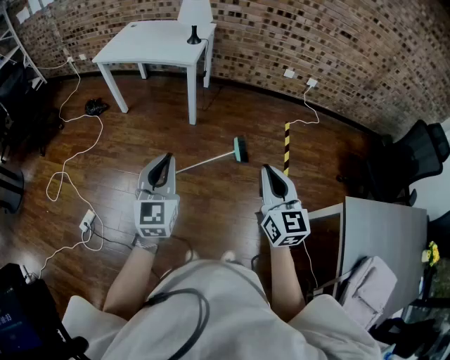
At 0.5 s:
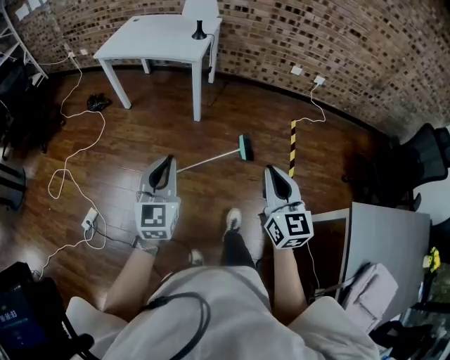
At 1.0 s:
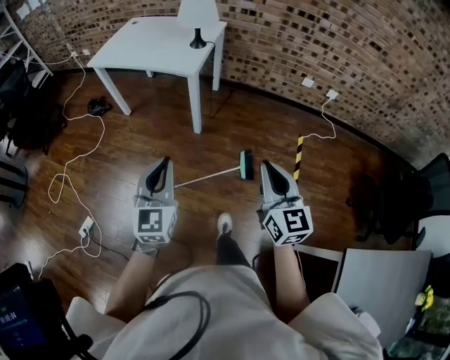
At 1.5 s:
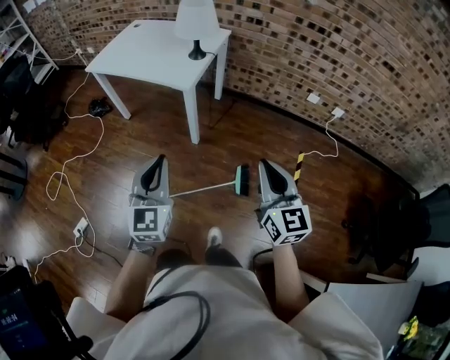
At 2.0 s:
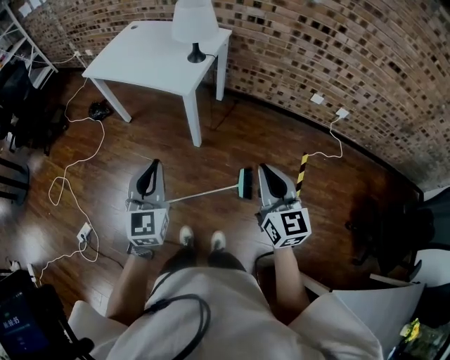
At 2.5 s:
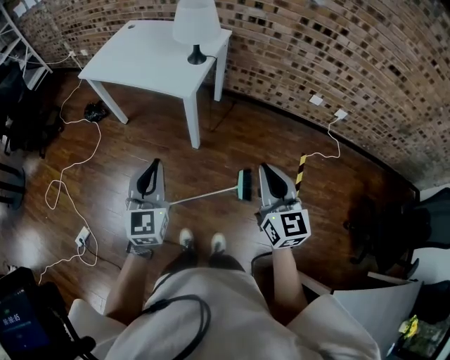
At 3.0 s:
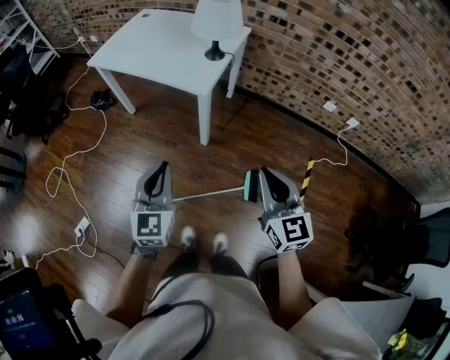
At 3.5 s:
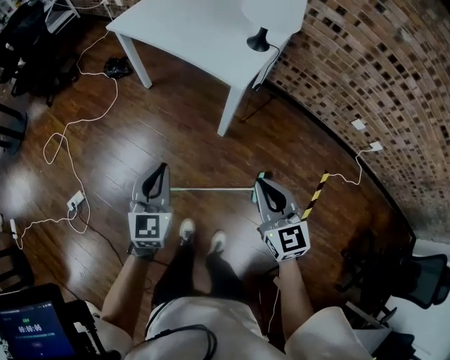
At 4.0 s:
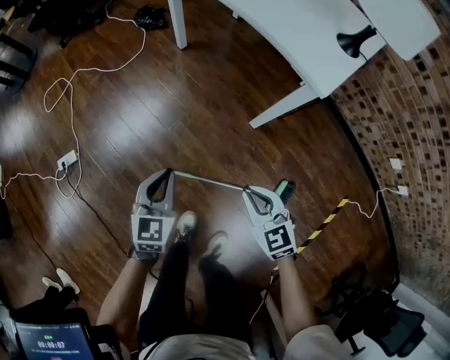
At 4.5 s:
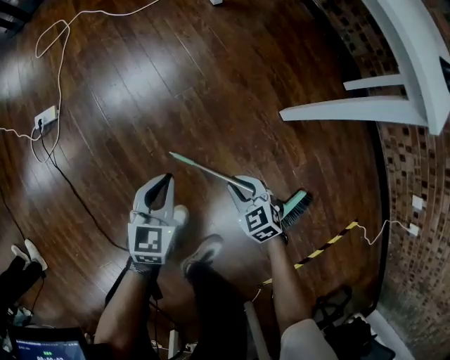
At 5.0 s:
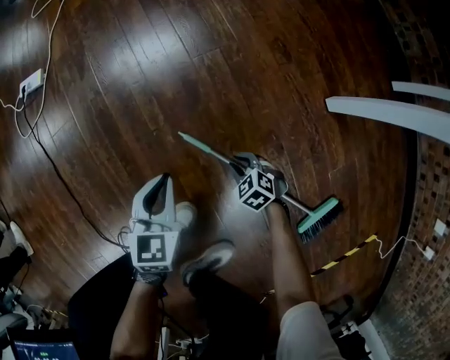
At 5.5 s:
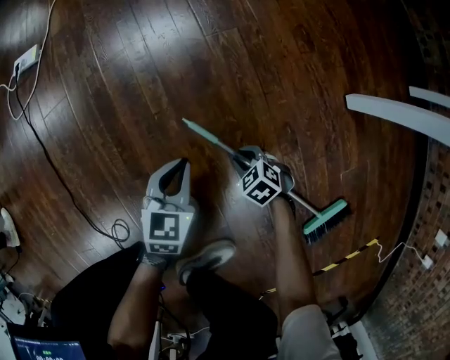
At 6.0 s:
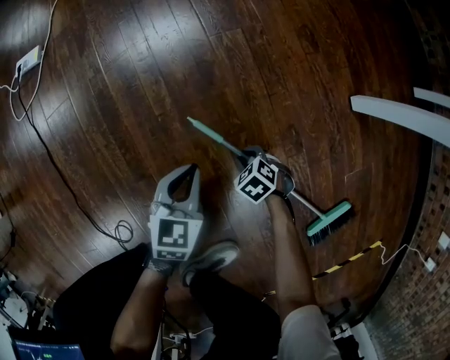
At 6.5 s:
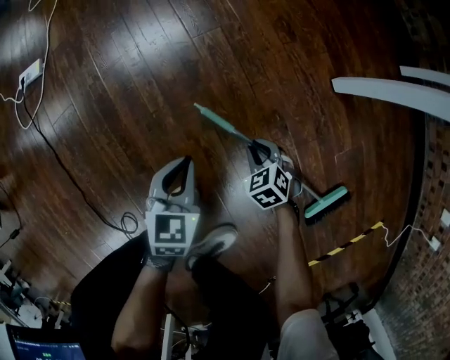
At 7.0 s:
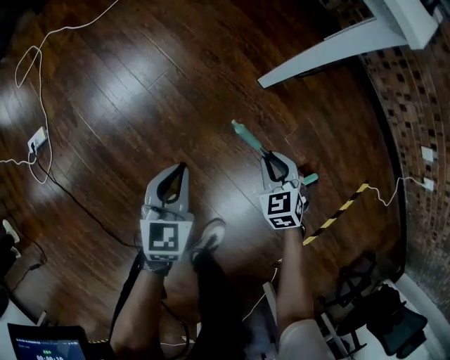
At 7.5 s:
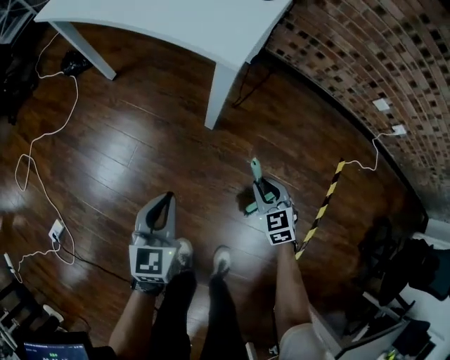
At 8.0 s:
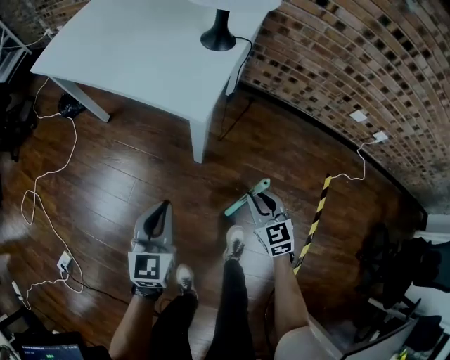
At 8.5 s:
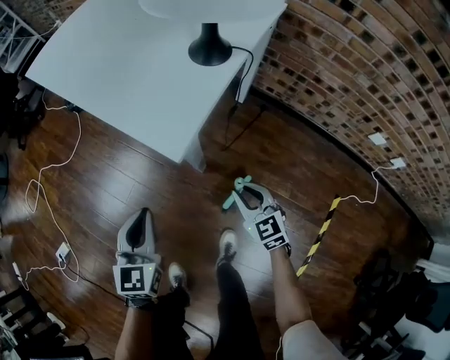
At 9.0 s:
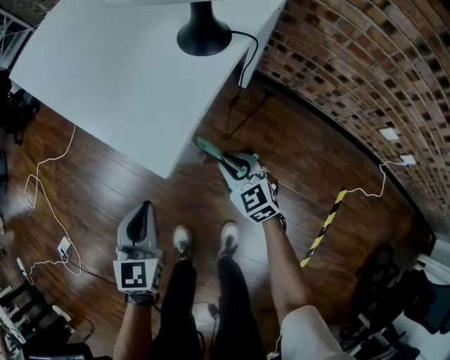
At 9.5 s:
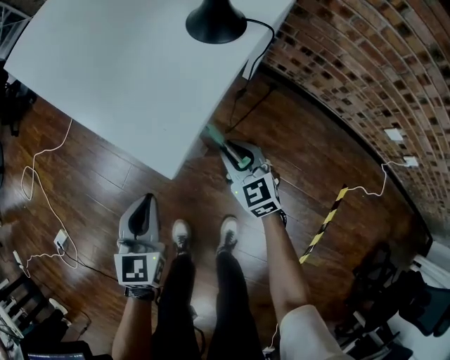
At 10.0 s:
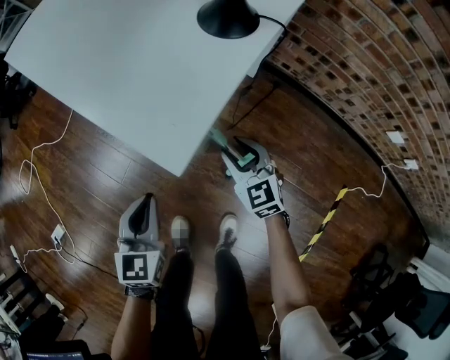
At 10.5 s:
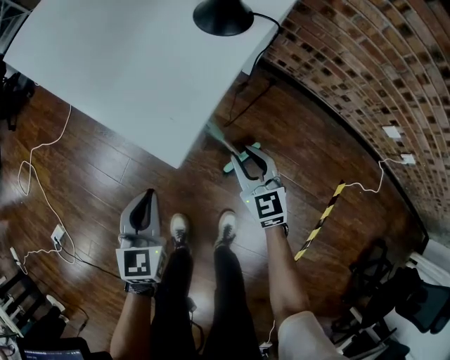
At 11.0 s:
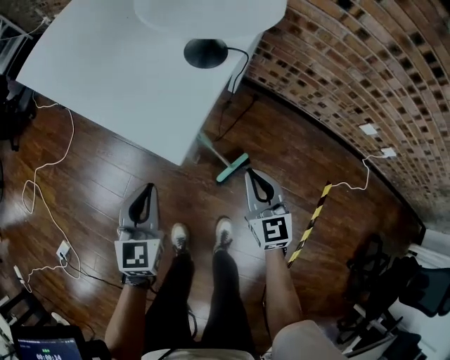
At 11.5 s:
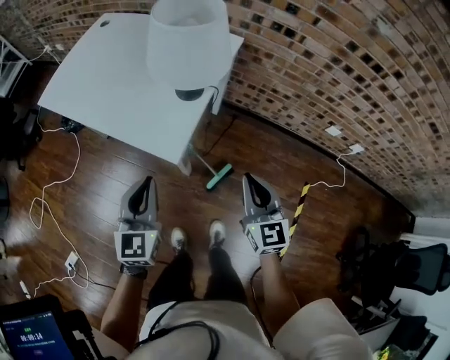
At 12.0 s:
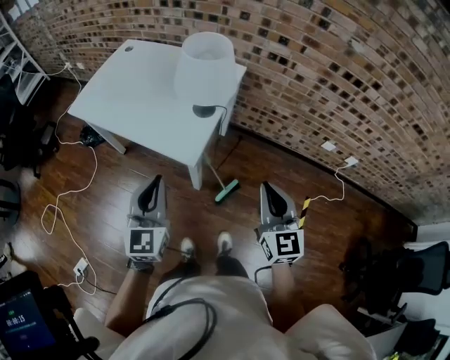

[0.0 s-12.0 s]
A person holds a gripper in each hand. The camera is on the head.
0.0 to 2.0 s: Both grippers travel together forward, some 35 cm.
2.0 to 4.0 s: Both grippers move downward, some 35 cm. The right gripper turns by roughly 50 degrees, while the left gripper rotates roughly 30 degrees.
4.0 to 6.0 s: Both grippers move downward, some 60 cm. The right gripper angles its fingers downward, by approximately 40 degrees. The left gripper turns by approximately 30 degrees.
6.0 to 8.0 s: Both grippers travel together upward, roughly 60 cm. The left gripper changes its angle by some 40 degrees, while the right gripper points its fingers approximately 40 degrees further upward.
8.0 to 10.0 s: The right gripper heads forward, covering approximately 20 cm, and opens, while the left gripper shifts about 15 cm forward and downward.
10.0 to 12.0 s: The grippers both shift upward by approximately 40 cm. The left gripper changes its angle by approximately 30 degrees. Meanwhile the right gripper swivels approximately 40 degrees, and closes.

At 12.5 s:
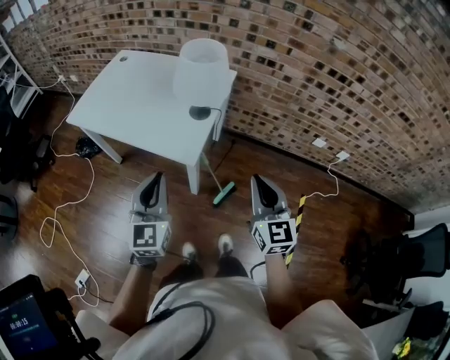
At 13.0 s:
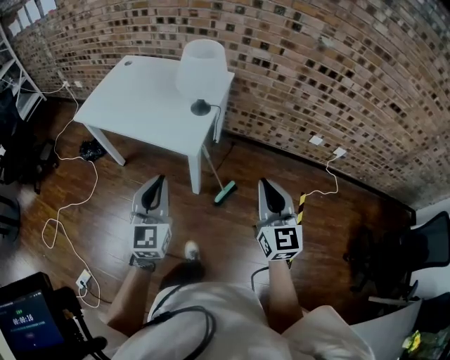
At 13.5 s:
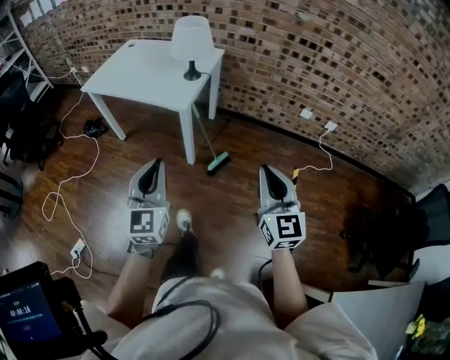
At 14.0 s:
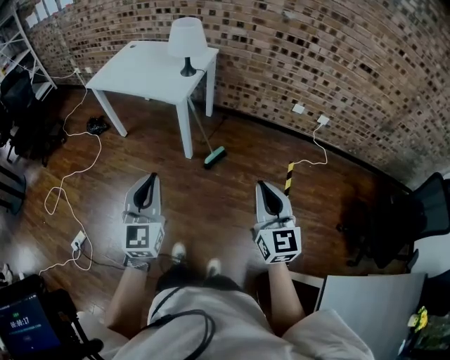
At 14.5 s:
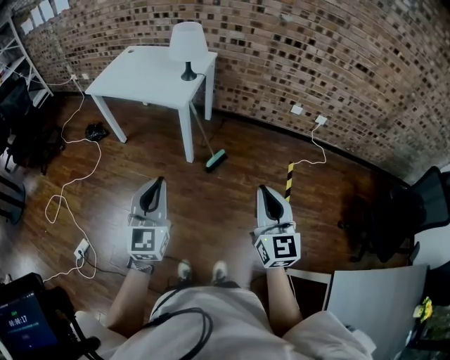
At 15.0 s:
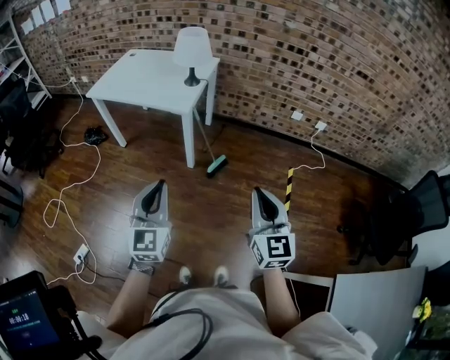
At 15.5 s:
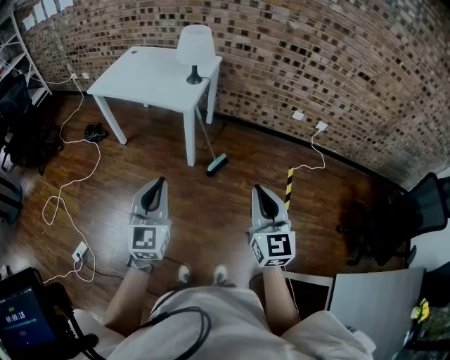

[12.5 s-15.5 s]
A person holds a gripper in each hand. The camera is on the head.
12.5 to 14.0 s: The two grippers travel together, backward, approximately 40 cm.
14.0 to 15.5 s: Both grippers travel together to the left, some 5 cm.

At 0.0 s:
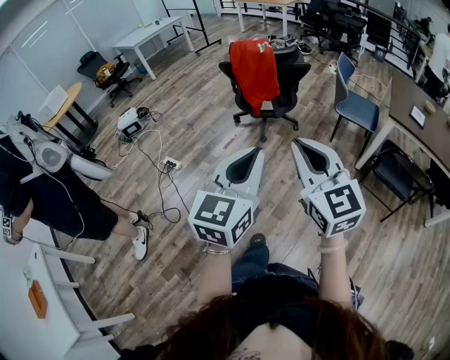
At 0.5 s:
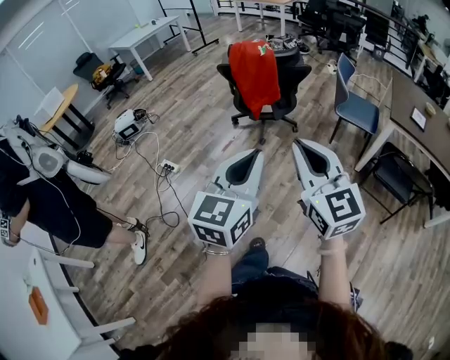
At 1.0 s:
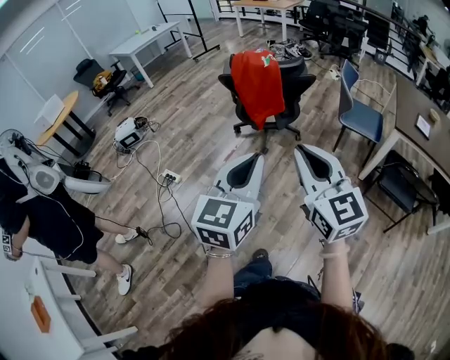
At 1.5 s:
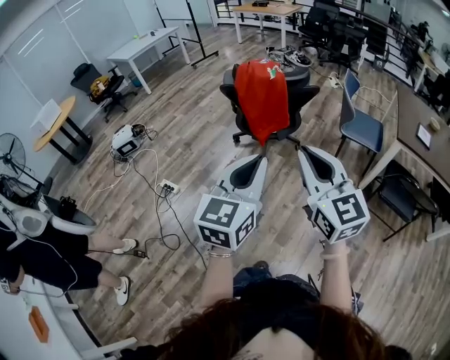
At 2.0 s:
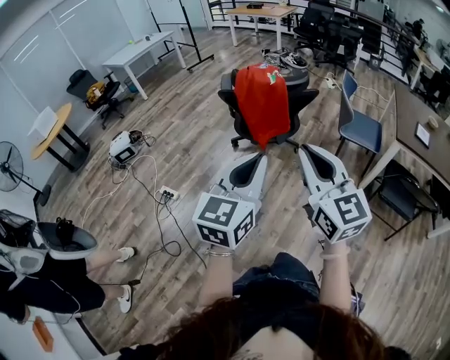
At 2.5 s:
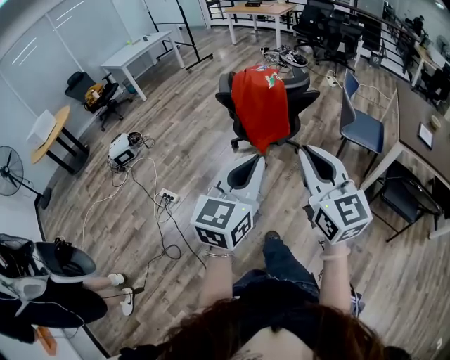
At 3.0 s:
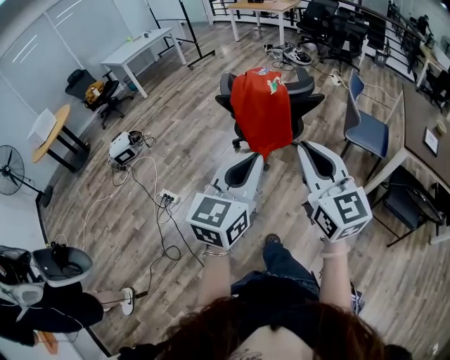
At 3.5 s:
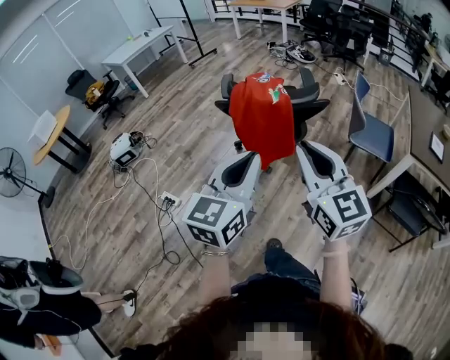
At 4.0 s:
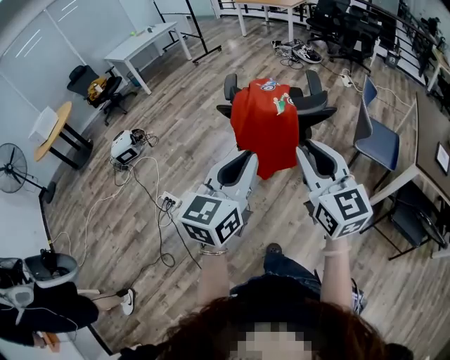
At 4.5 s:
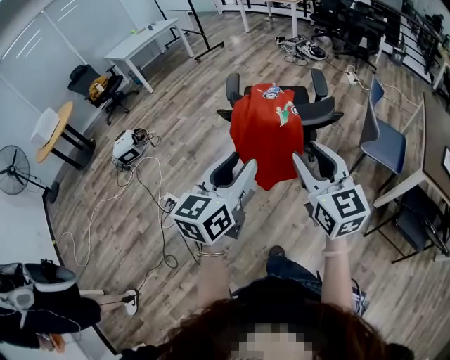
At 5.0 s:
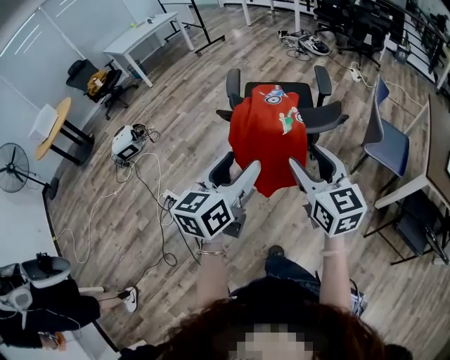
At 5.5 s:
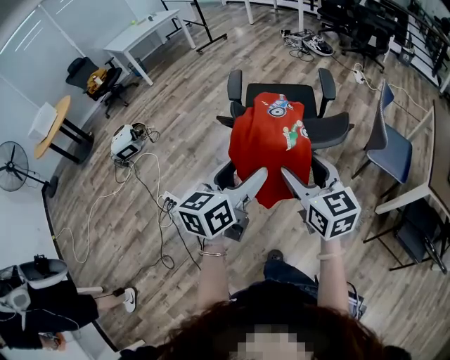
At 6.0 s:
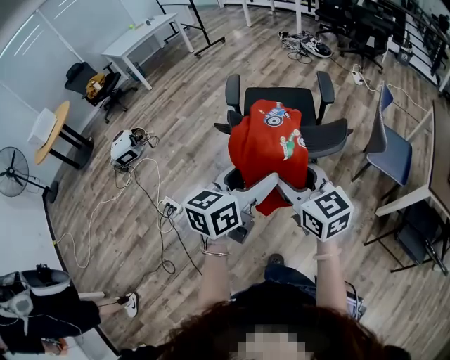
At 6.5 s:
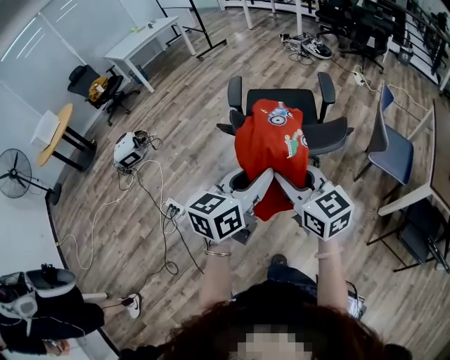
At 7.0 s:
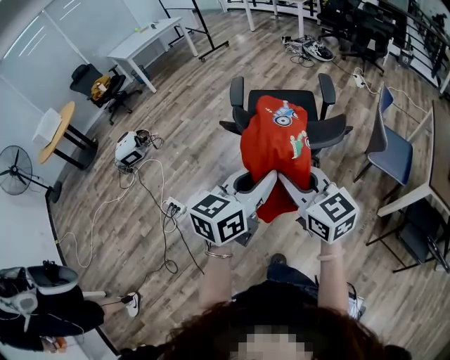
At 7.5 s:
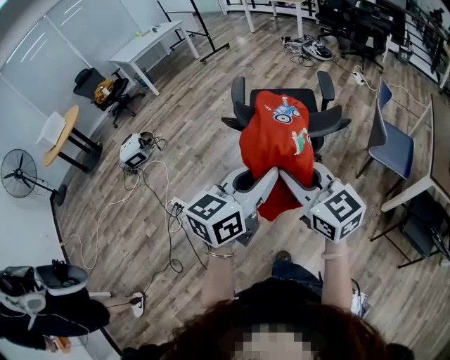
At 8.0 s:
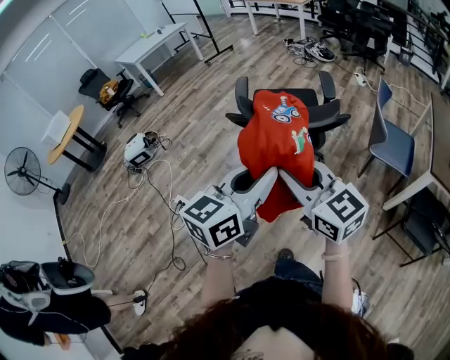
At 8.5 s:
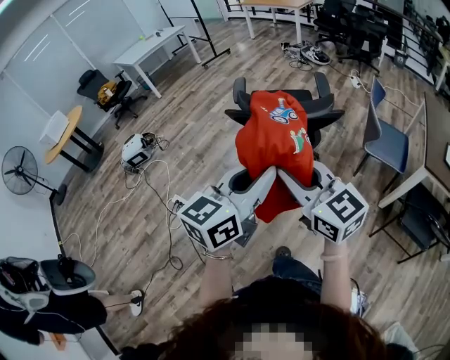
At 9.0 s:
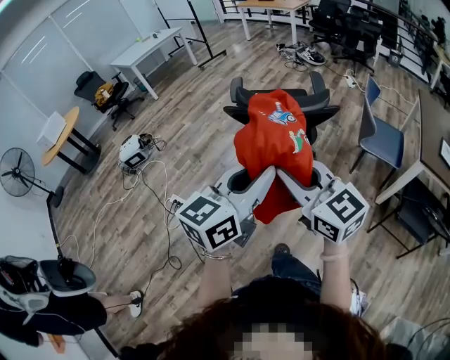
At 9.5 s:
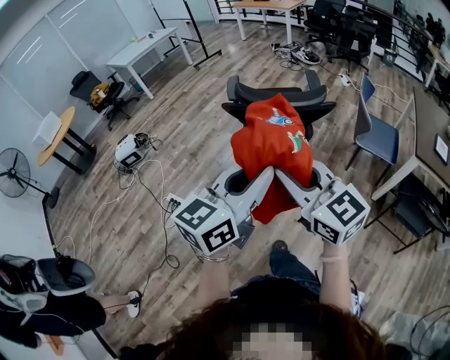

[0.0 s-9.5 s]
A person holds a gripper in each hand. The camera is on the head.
0.0 to 2.0 s: The grippers both shift forward by some 20 cm.
2.0 to 4.0 s: The grippers both shift forward by some 20 cm.
4.0 to 5.5 s: Both grippers travel together forward and downward, some 15 cm. The right gripper opens its fingers. The left gripper rotates approximately 20 degrees, and opens.
5.5 to 7.5 s: The left gripper shifts about 10 cm backward and upward, and closes up. The right gripper shifts some 5 cm backward, and closes up.
7.5 to 9.5 s: The two grippers go approximately 15 cm backward.

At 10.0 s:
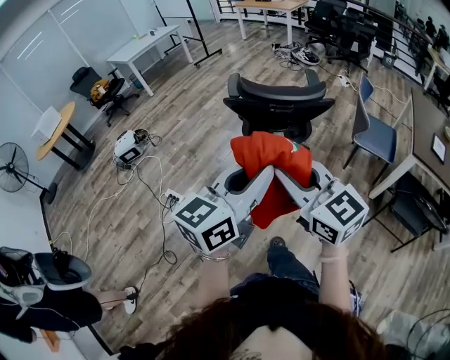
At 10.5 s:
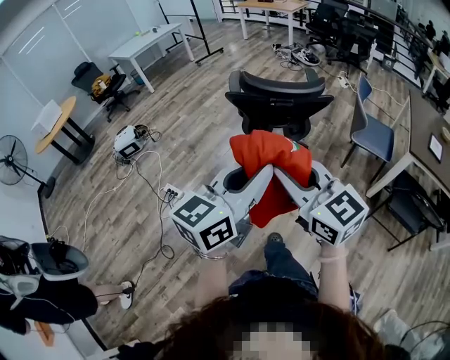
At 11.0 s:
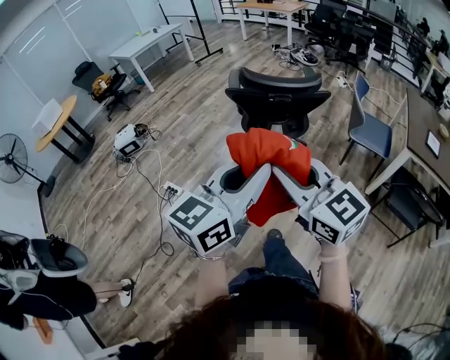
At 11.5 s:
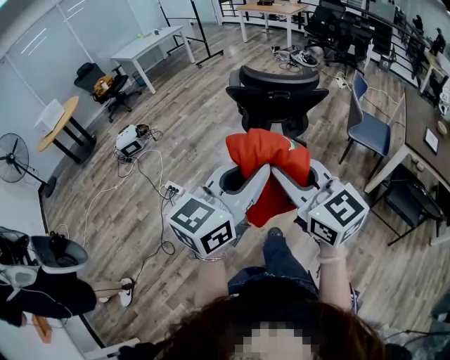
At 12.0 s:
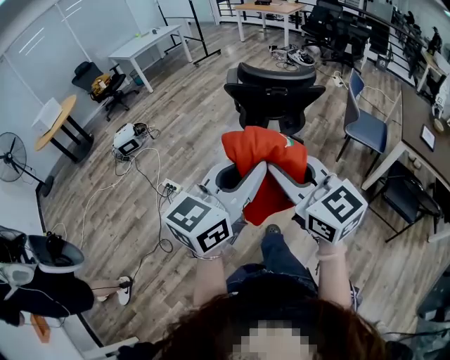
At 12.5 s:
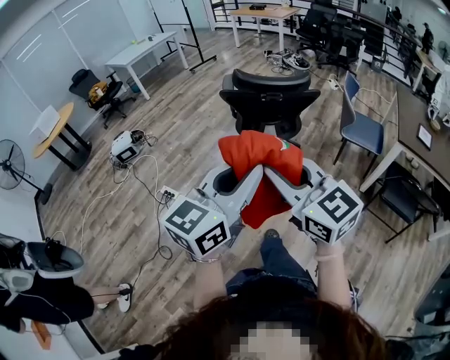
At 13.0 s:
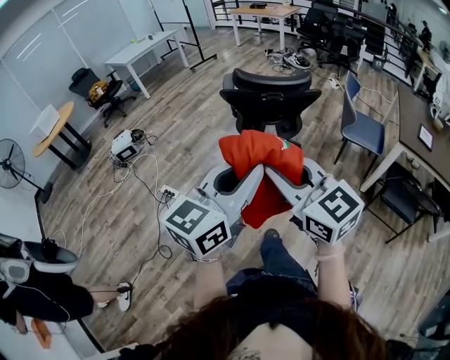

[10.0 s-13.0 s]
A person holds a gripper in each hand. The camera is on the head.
10.0 to 11.5 s: Both grippers travel together backward, roughly 10 cm.
11.5 to 13.0 s: There are only small adjustments of the grippers.
